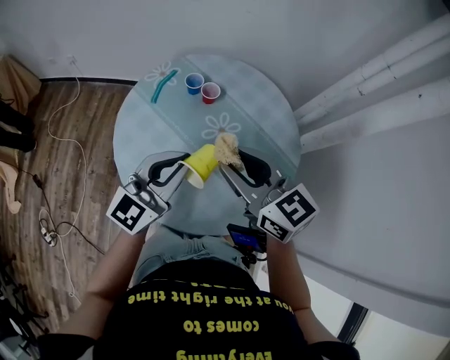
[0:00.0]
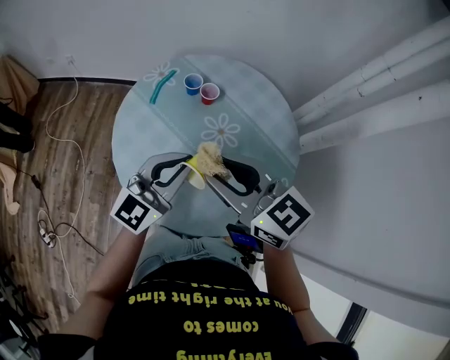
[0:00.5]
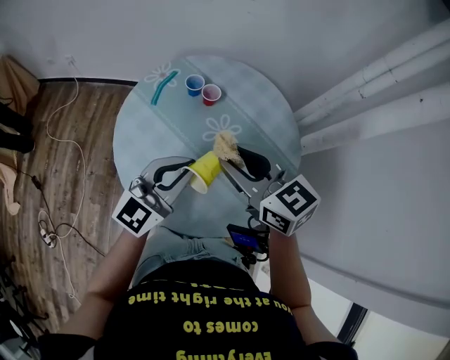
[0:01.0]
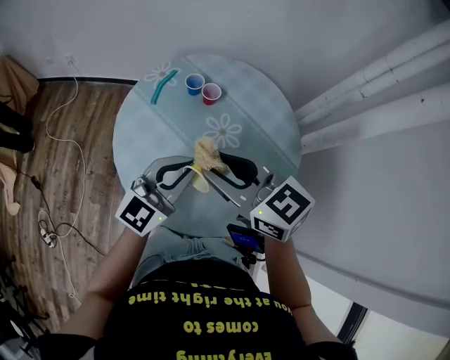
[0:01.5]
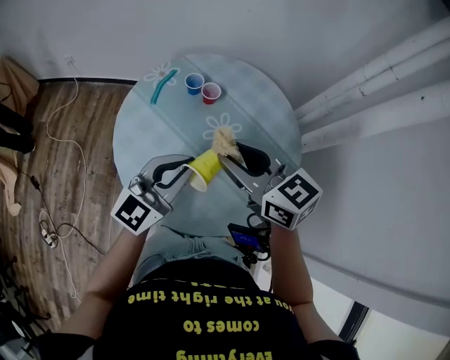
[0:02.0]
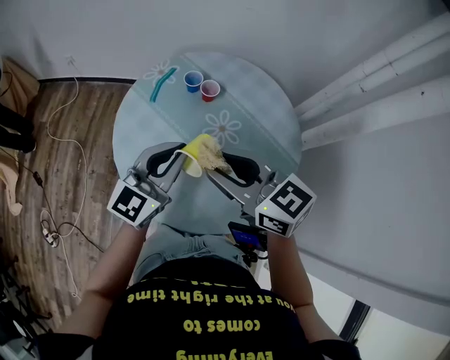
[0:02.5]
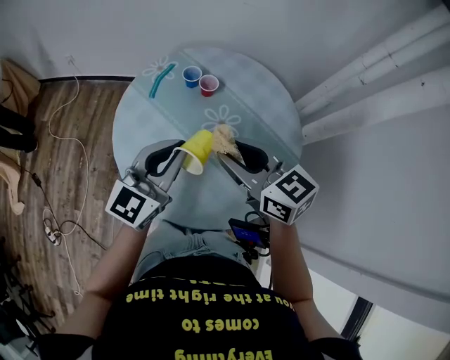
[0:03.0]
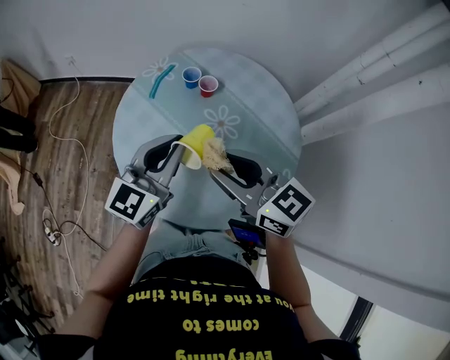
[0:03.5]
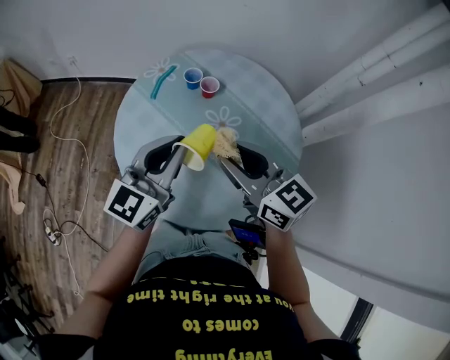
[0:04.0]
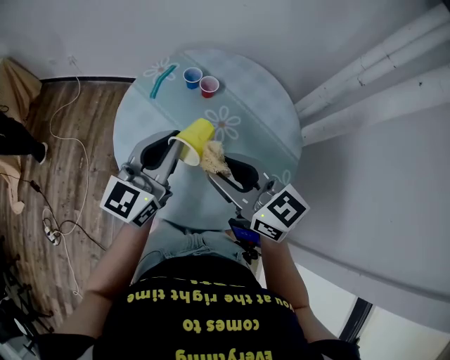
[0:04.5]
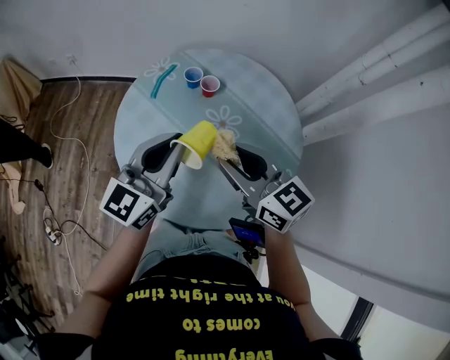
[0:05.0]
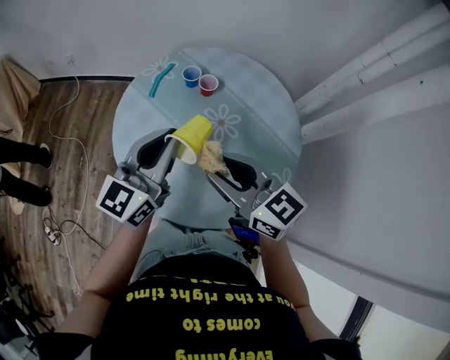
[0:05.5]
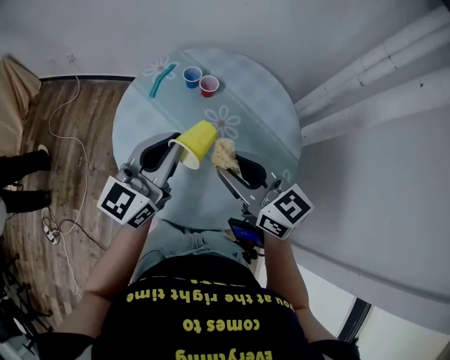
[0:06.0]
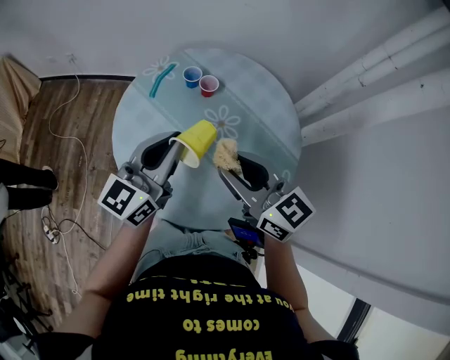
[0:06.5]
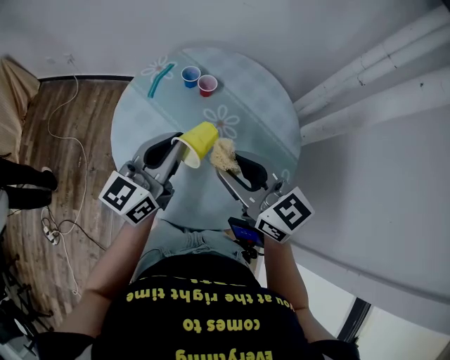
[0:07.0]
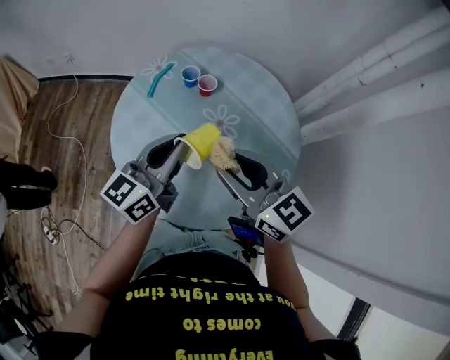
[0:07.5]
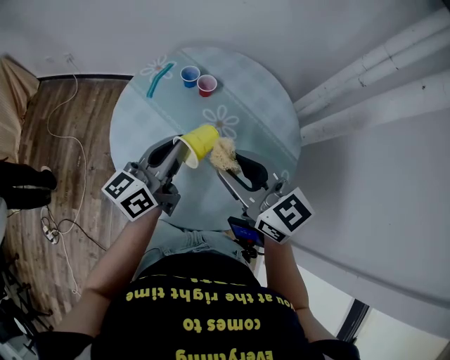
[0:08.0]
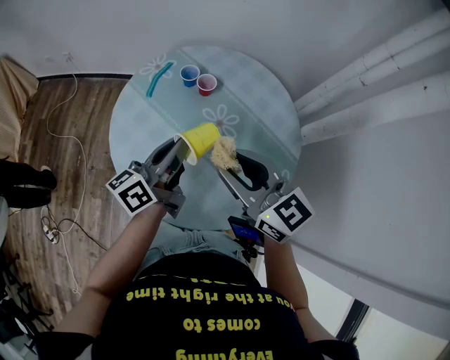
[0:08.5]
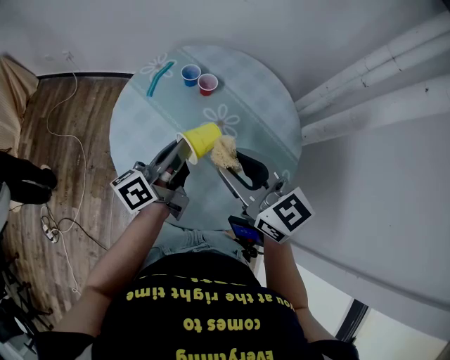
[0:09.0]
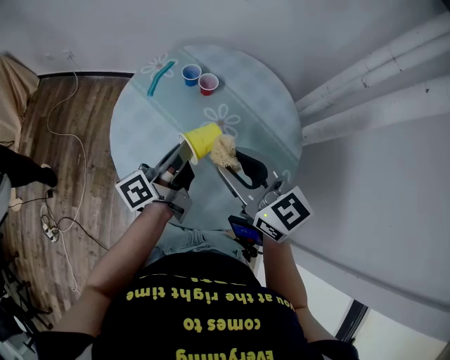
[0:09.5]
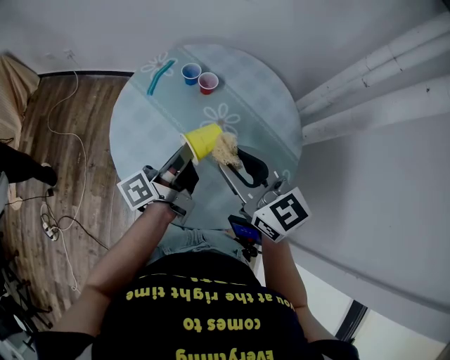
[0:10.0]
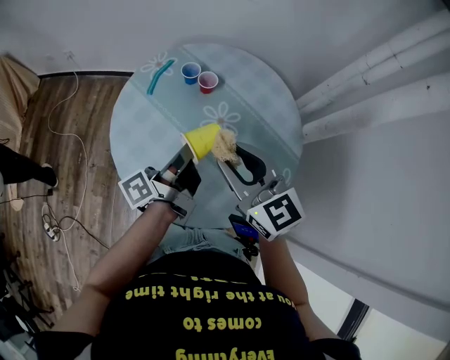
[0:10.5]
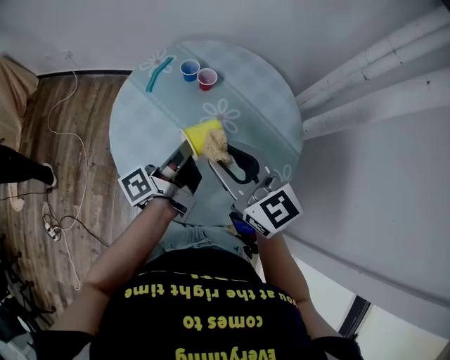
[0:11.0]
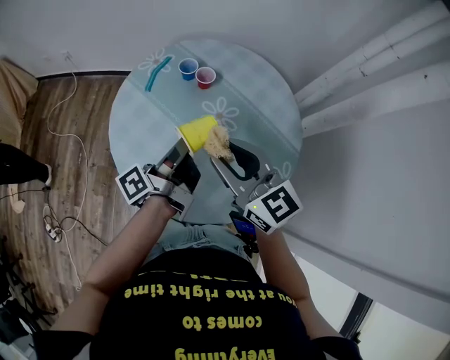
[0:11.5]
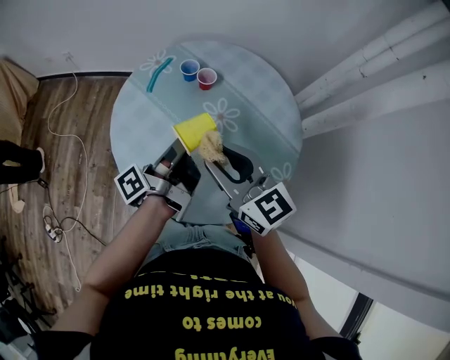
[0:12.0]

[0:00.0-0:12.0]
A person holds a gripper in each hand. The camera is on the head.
0:00.0 to 0:06.0: The grippers make only small movements.
0:06.0 to 0:08.0: The left gripper changes its angle by approximately 30 degrees.
0:08.0 to 0:10.0: The left gripper rolls counterclockwise, seen from behind, by approximately 40 degrees.
0:10.0 to 0:12.0: The grippers stay close to where they were, moving slightly.

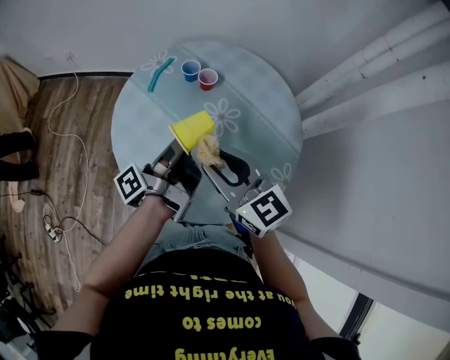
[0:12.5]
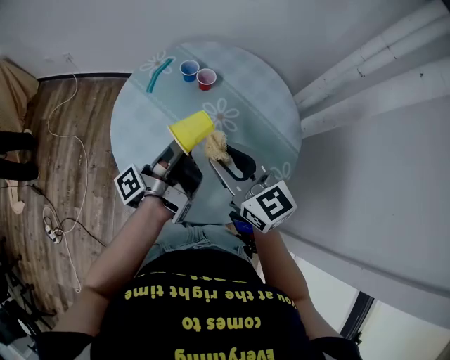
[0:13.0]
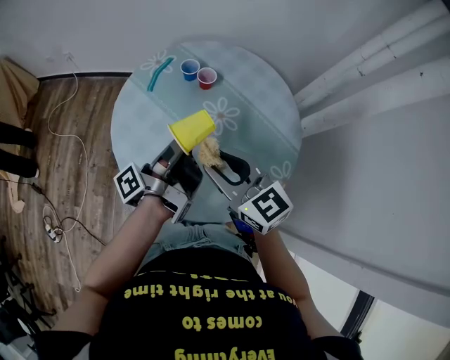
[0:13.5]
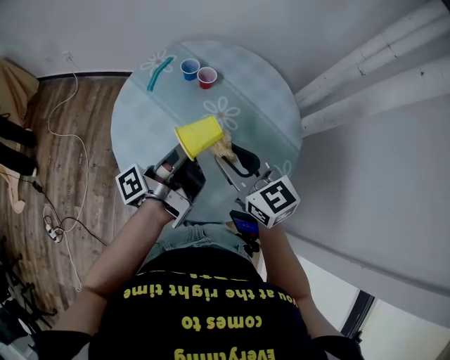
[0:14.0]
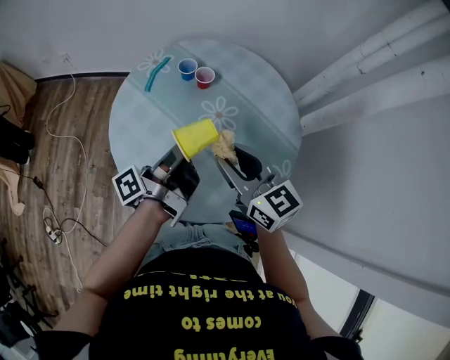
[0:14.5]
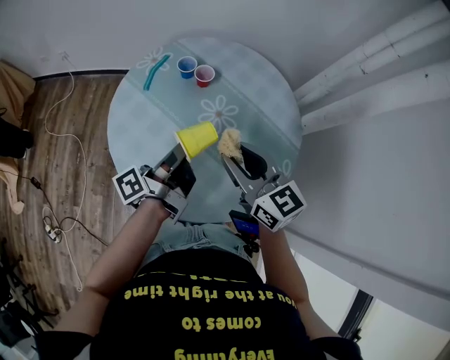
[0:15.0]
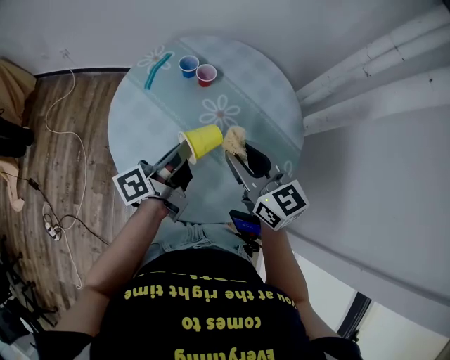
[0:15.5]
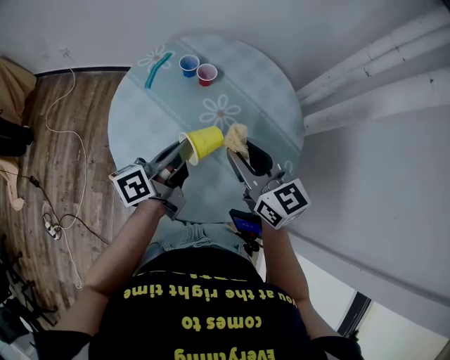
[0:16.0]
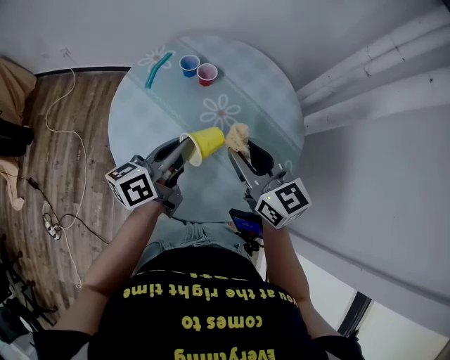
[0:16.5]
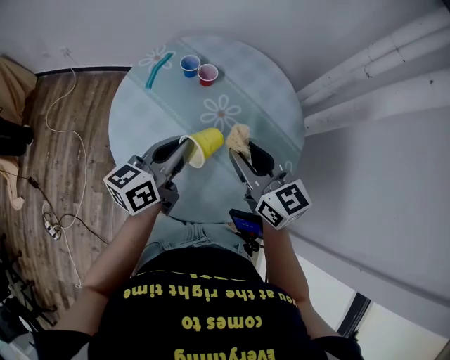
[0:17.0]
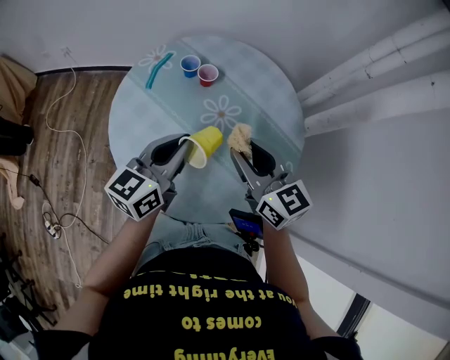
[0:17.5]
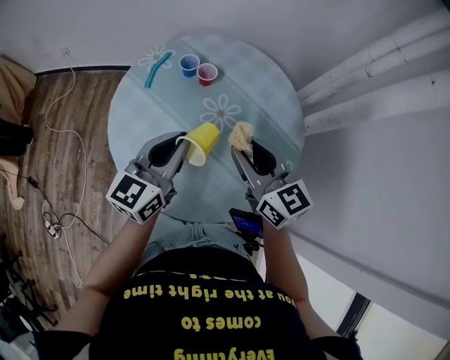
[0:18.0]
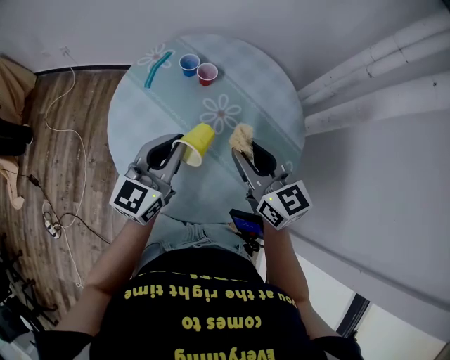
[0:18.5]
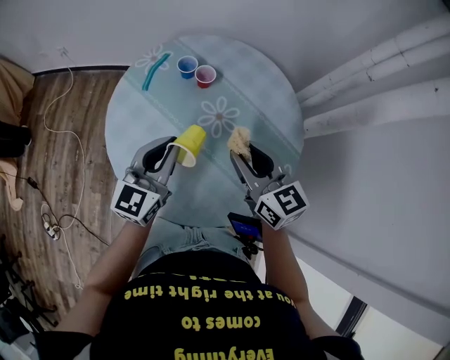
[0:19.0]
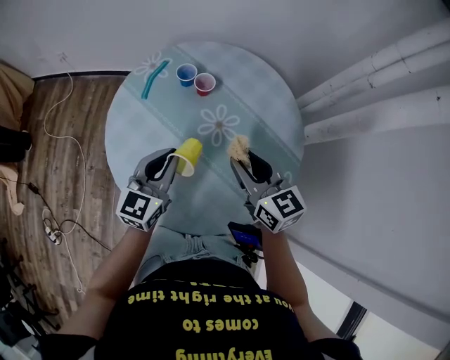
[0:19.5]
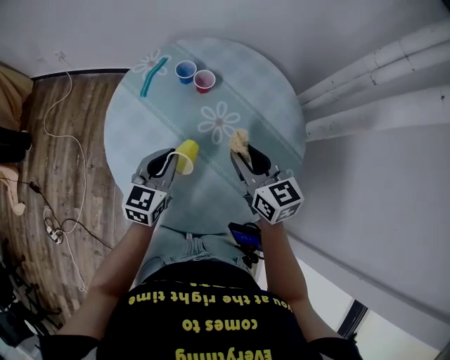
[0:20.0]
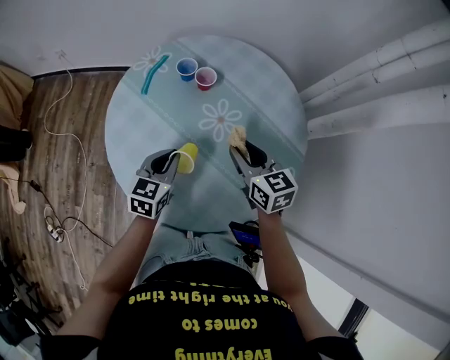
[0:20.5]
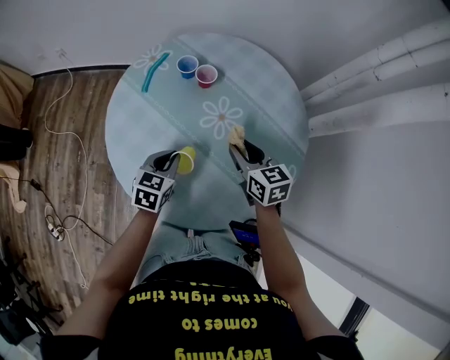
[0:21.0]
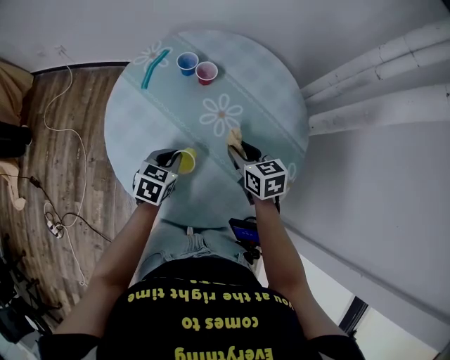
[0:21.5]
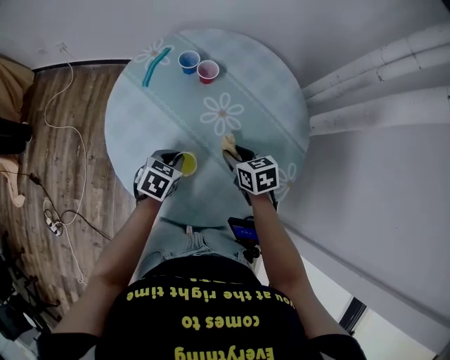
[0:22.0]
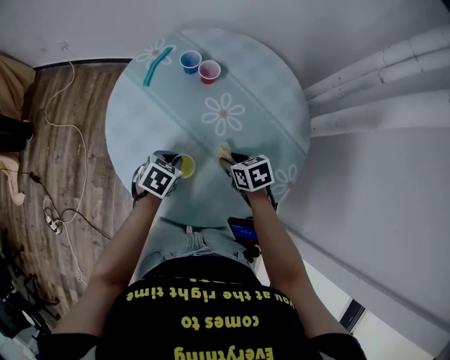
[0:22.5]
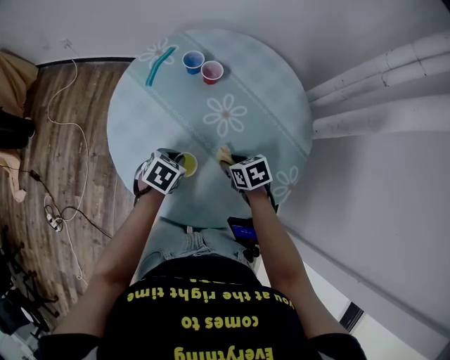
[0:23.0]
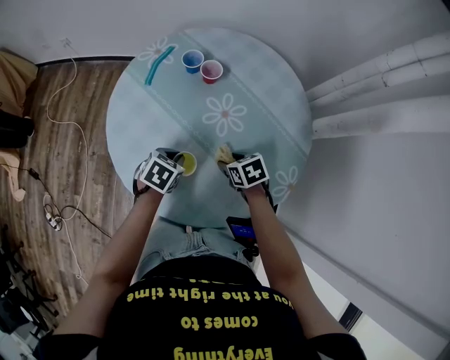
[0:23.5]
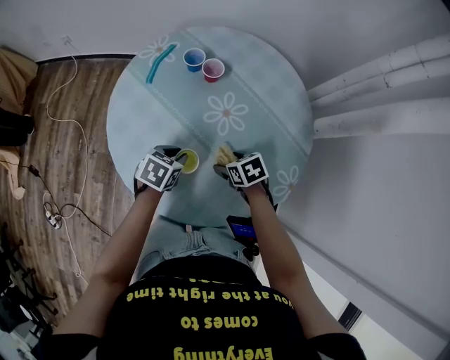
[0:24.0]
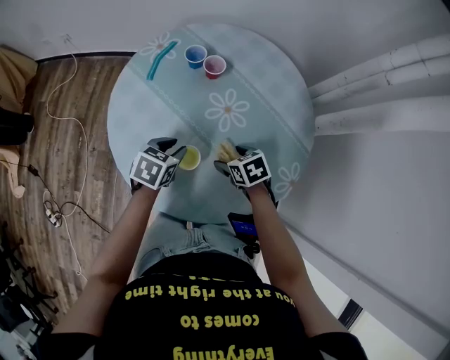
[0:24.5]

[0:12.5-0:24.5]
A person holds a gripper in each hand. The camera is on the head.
0:12.5 to 0:14.5: The grippers move only a little.
0:14.5 to 0:16.5: The left gripper twists some 40 degrees clockwise, seen from behind.
0:16.5 to 0:18.5: The left gripper turns by approximately 40 degrees.
0:18.5 to 0:20.5: The right gripper heads downward and forward, covering some 10 cm. Meanwhile the left gripper travels downward by approximately 15 cm, and changes its angle by roughly 30 degrees.
0:20.5 to 0:22.5: The left gripper moves downward, approximately 10 cm, and rotates about 30 degrees, while the right gripper goes some 15 cm downward, and rotates some 30 degrees.
0:22.5 to 0:24.5: The left gripper opens its fingers. Meanwhile the right gripper opens up.

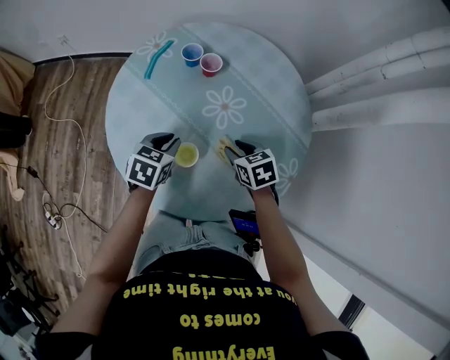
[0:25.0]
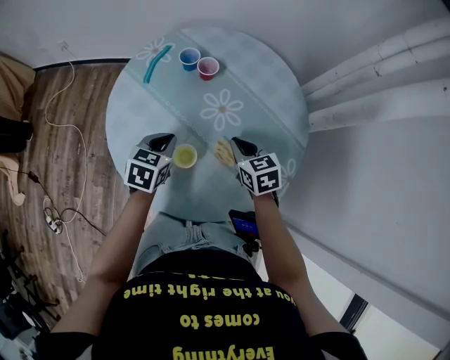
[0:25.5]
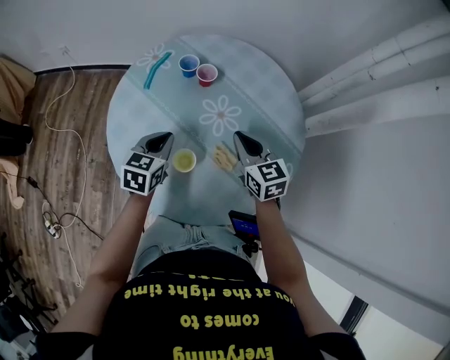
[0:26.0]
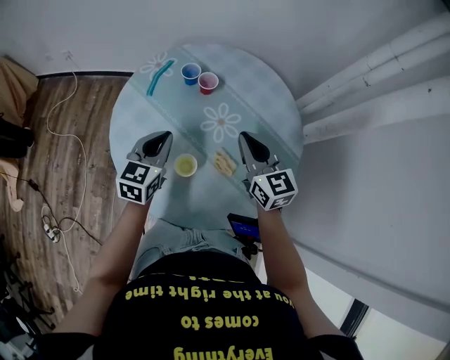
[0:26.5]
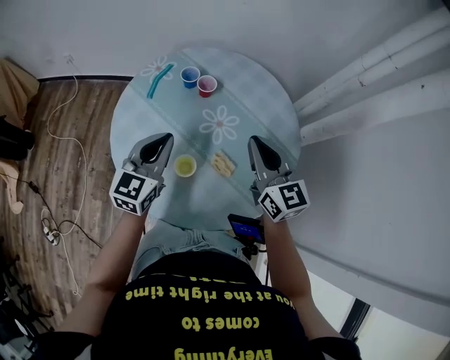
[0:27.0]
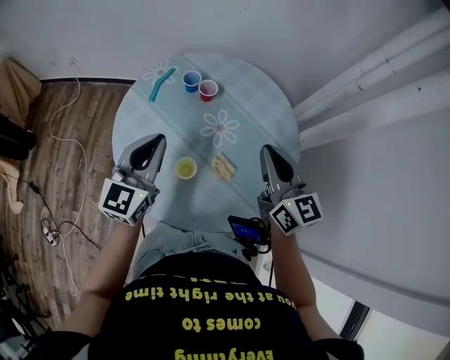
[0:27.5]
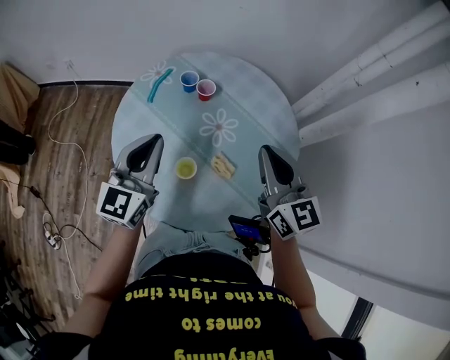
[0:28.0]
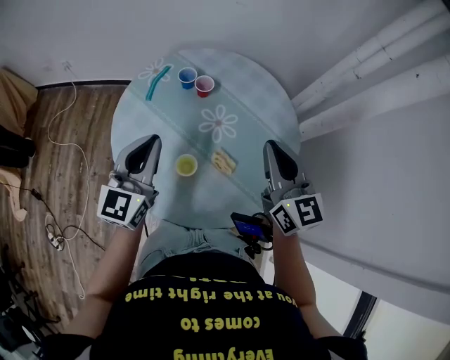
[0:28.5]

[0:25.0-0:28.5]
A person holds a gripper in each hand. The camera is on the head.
0:25.0 to 0:27.0: Both grippers move upward, roughly 20 cm. The right gripper points its fingers some 50 degrees further upward, and closes. Meanwhile the left gripper tips its fingers upward by approximately 40 degrees.
0:27.0 to 0:28.5: The grippers both shift upward by some 5 cm.
